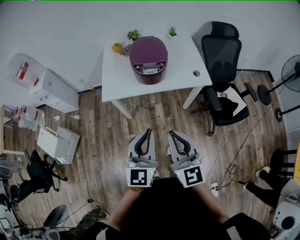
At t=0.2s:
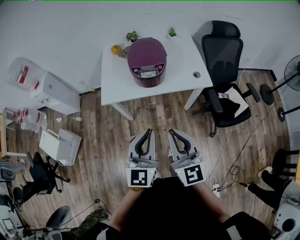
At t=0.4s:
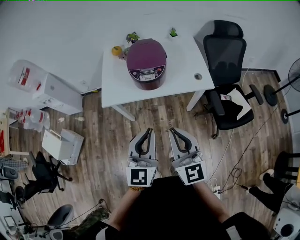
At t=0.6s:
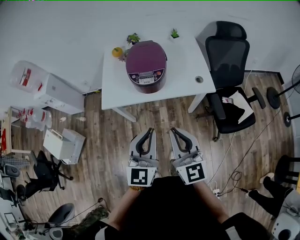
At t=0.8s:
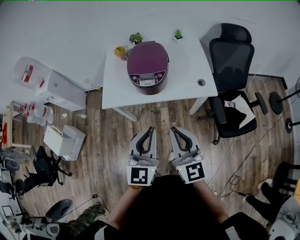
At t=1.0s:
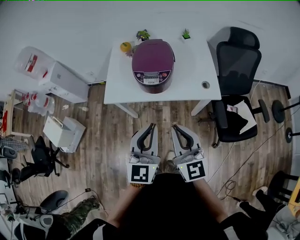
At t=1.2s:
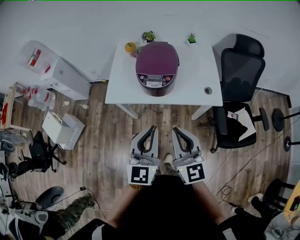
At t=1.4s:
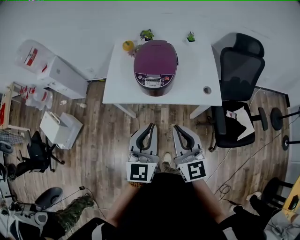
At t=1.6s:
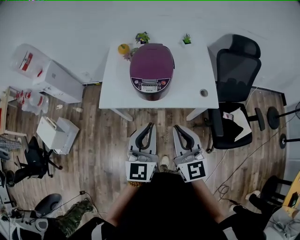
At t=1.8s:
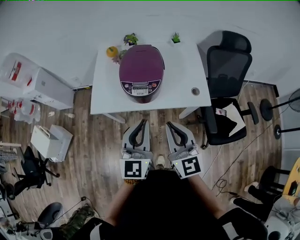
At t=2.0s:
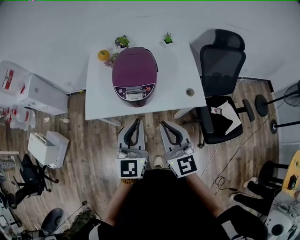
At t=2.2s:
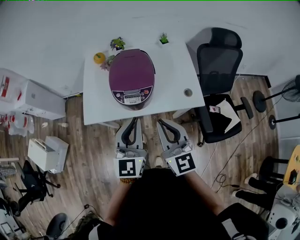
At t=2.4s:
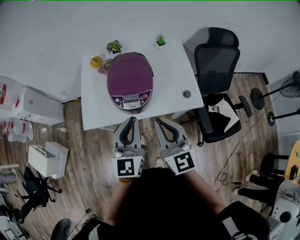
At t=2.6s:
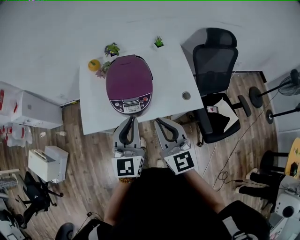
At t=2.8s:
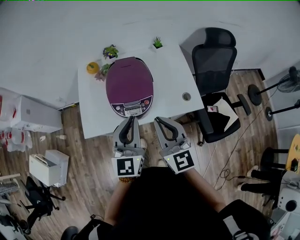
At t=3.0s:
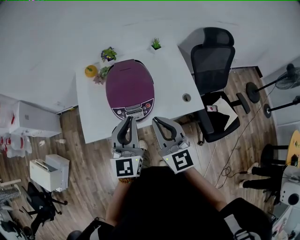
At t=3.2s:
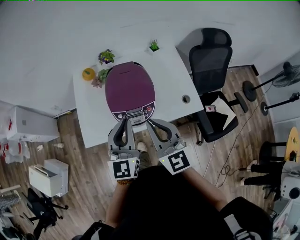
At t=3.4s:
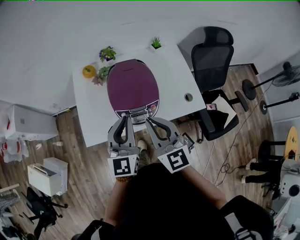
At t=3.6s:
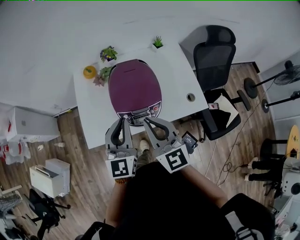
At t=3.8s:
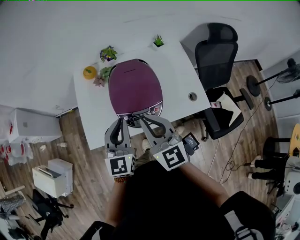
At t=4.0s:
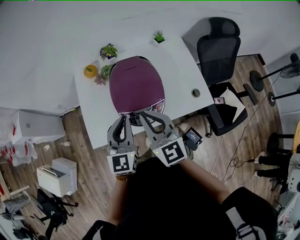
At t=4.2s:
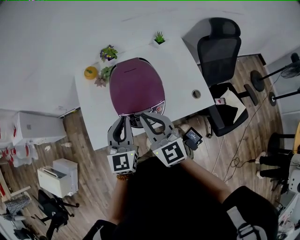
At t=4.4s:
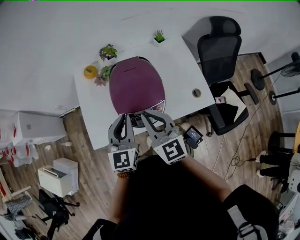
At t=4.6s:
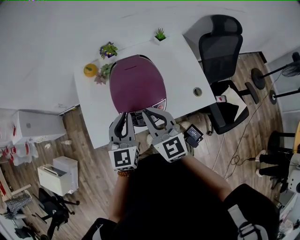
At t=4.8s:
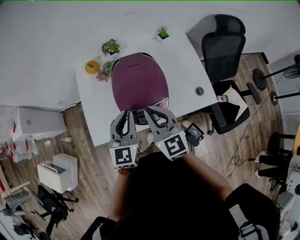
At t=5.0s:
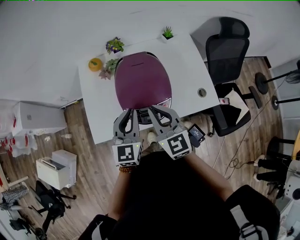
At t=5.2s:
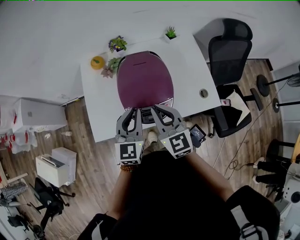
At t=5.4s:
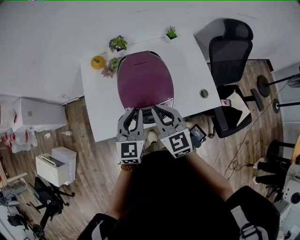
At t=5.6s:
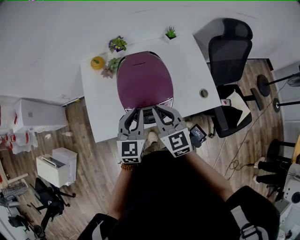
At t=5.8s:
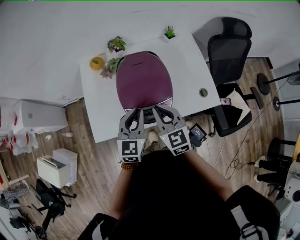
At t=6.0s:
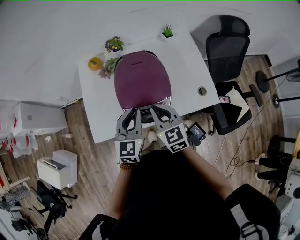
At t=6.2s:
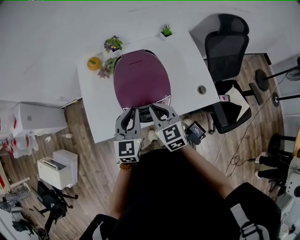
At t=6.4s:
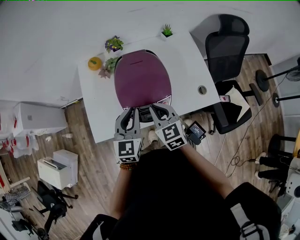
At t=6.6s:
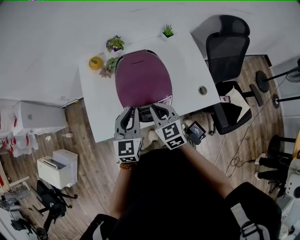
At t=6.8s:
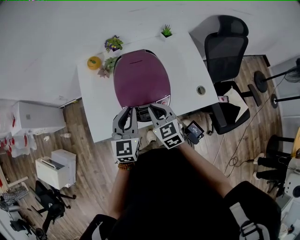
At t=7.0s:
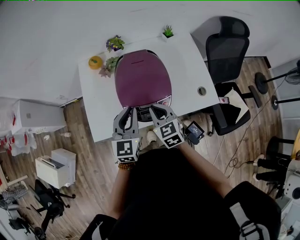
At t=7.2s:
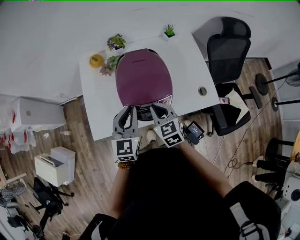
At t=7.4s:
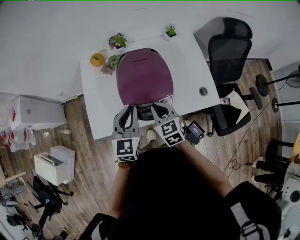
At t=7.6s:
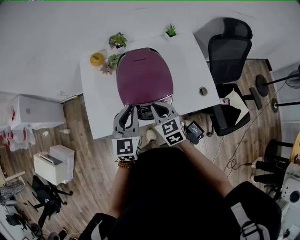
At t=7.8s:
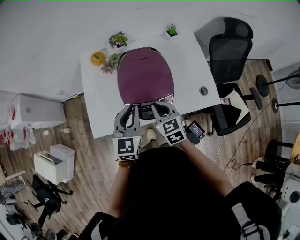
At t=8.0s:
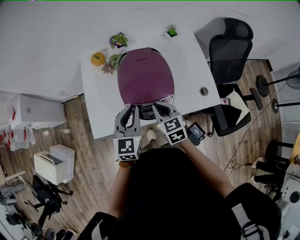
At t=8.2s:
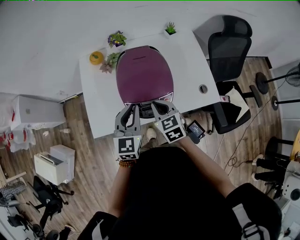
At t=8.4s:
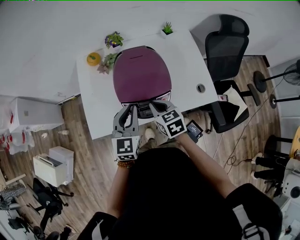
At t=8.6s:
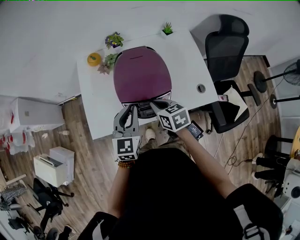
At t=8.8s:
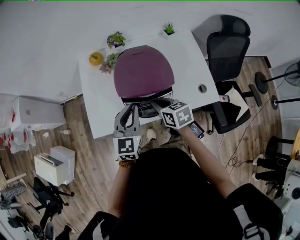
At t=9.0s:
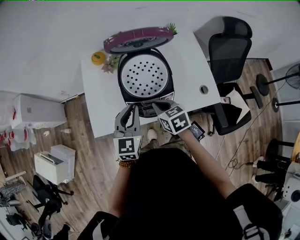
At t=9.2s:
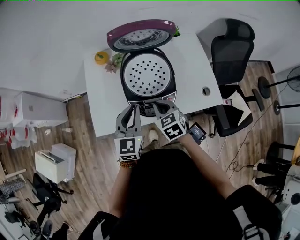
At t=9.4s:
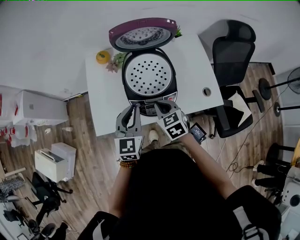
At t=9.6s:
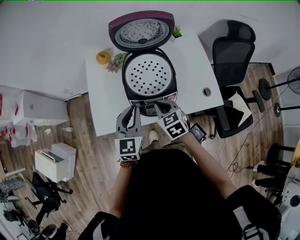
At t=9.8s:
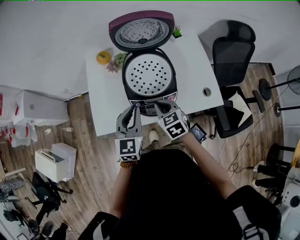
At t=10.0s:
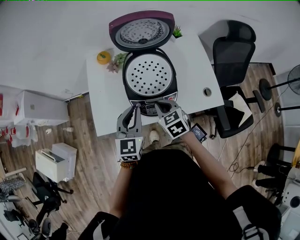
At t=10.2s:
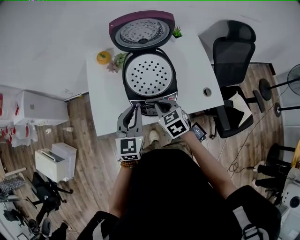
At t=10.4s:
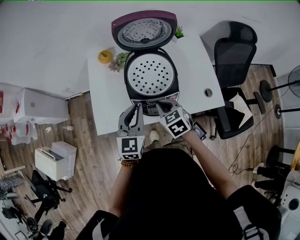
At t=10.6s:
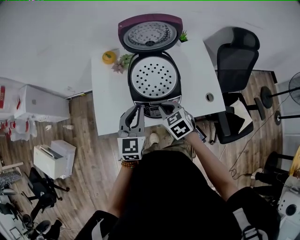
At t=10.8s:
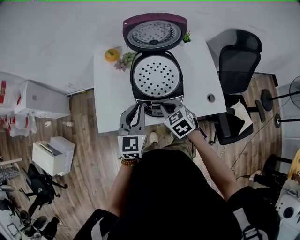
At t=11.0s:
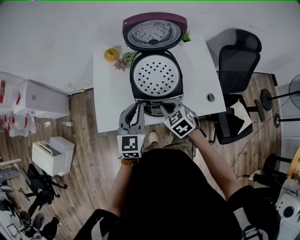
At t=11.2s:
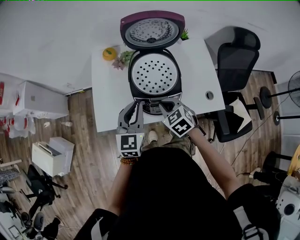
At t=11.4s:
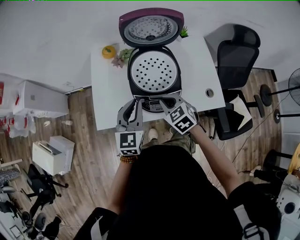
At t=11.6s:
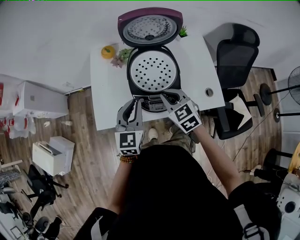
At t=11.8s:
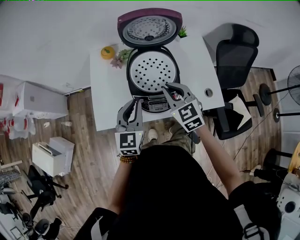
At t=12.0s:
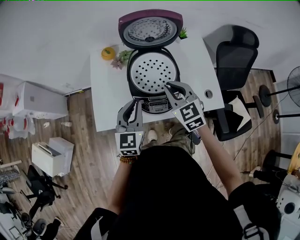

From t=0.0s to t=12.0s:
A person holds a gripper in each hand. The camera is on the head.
From t=0.0s to t=1.6s: Both grippers move forward and to the right, roughly 20 cm.
From t=1.6s to t=3.0s: The two grippers go approximately 20 cm forward.
From t=3.0s to t=4.4s: The grippers both shift forward, downward and to the left by some 15 cm.
From t=4.4s to t=6.0s: The left gripper changes place by about 5 cm. Meanwhile the right gripper goes some 10 cm downward.
From t=6.0s to t=7.6s: There are only small adjustments of the grippers.
From t=9.0s to t=10.4s: The grippers stay close to where they were, moving slightly.
From t=10.4s to t=12.0s: The right gripper heads upward, covering approximately 10 cm, and swivels approximately 20 degrees.

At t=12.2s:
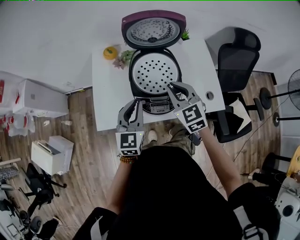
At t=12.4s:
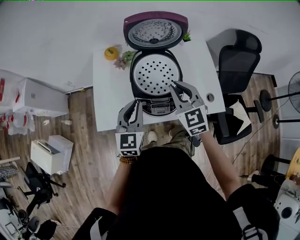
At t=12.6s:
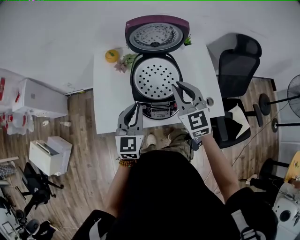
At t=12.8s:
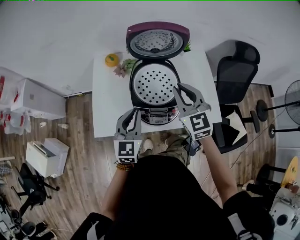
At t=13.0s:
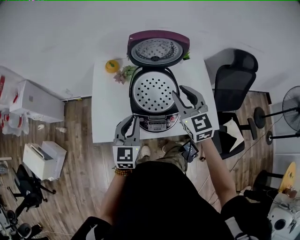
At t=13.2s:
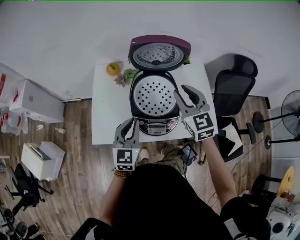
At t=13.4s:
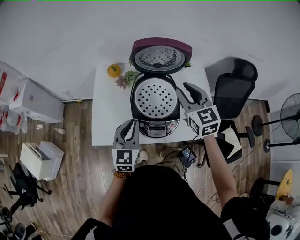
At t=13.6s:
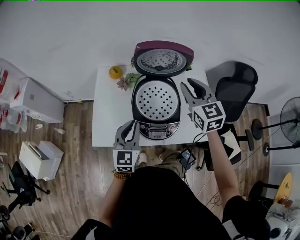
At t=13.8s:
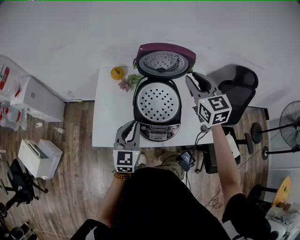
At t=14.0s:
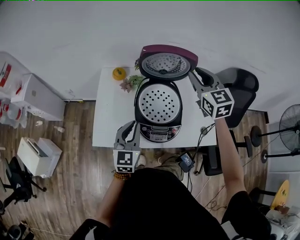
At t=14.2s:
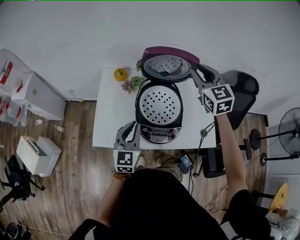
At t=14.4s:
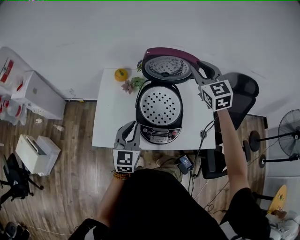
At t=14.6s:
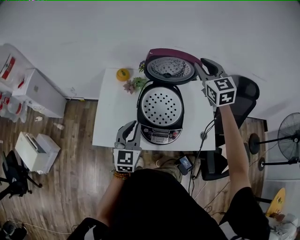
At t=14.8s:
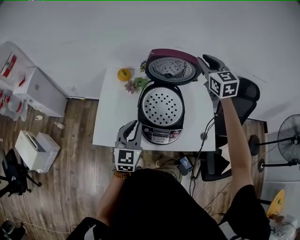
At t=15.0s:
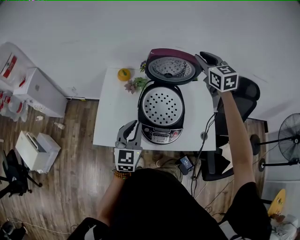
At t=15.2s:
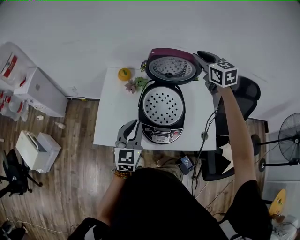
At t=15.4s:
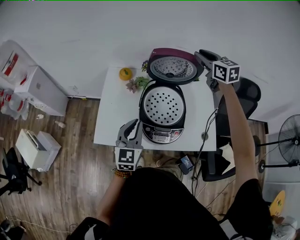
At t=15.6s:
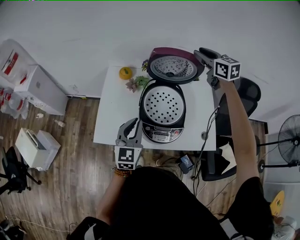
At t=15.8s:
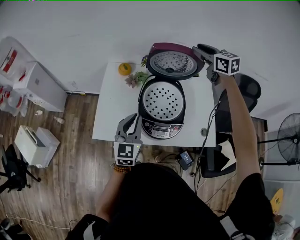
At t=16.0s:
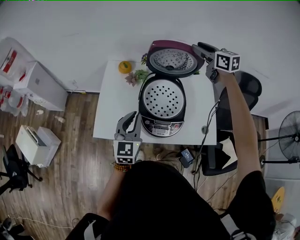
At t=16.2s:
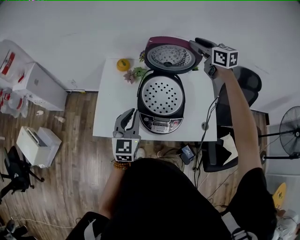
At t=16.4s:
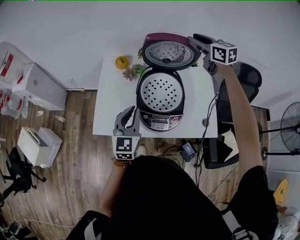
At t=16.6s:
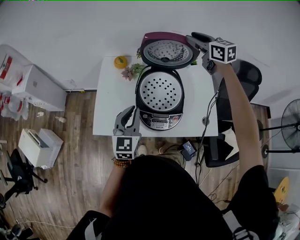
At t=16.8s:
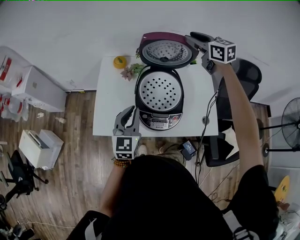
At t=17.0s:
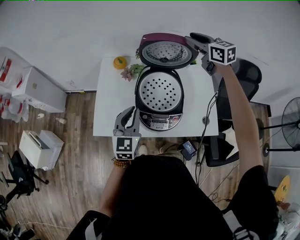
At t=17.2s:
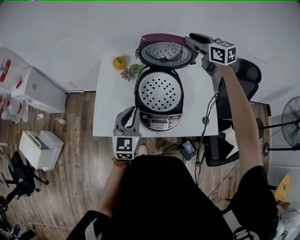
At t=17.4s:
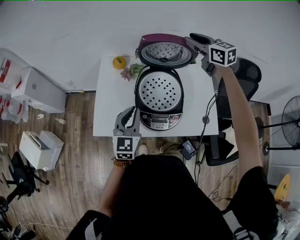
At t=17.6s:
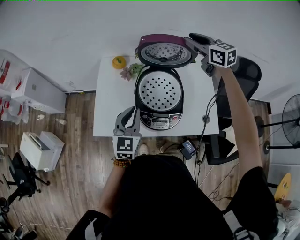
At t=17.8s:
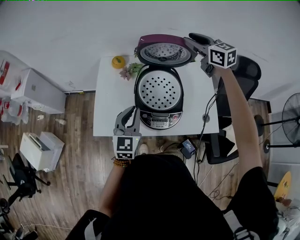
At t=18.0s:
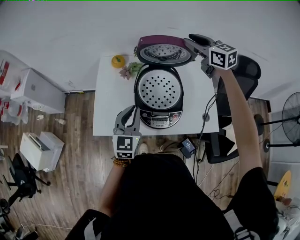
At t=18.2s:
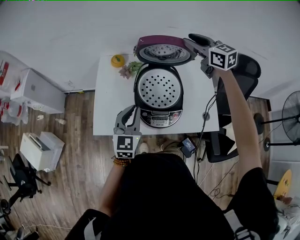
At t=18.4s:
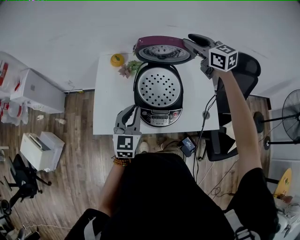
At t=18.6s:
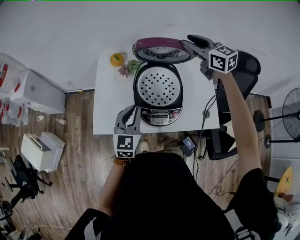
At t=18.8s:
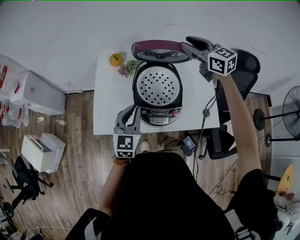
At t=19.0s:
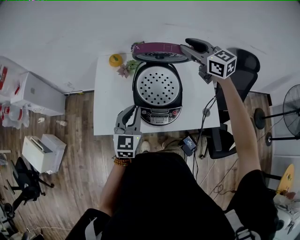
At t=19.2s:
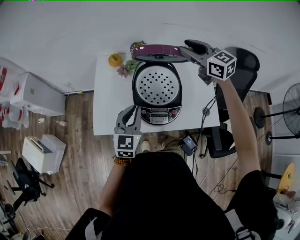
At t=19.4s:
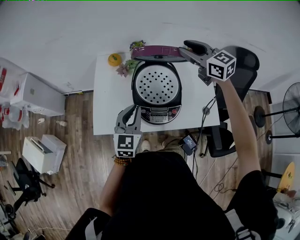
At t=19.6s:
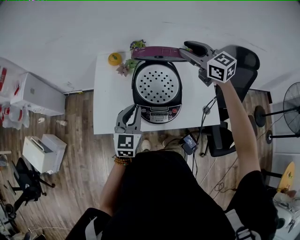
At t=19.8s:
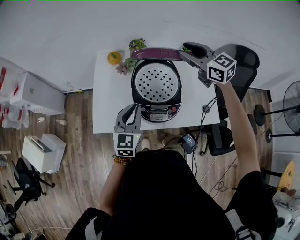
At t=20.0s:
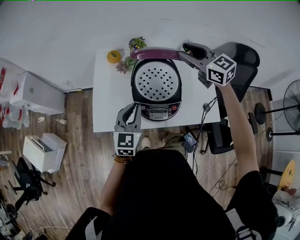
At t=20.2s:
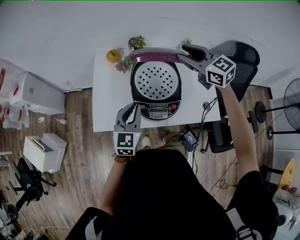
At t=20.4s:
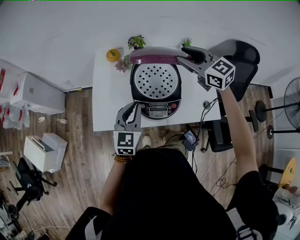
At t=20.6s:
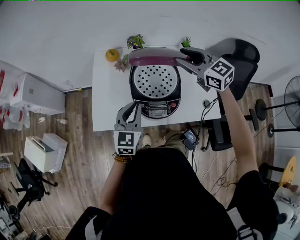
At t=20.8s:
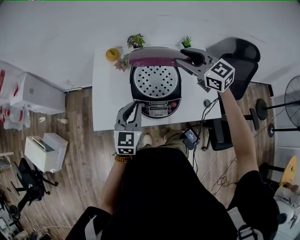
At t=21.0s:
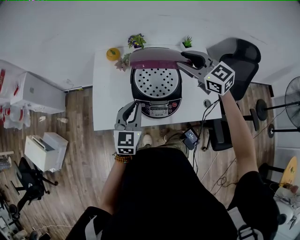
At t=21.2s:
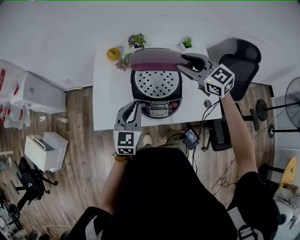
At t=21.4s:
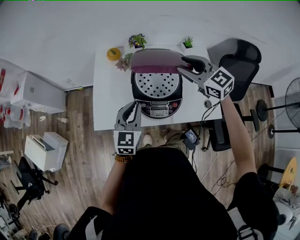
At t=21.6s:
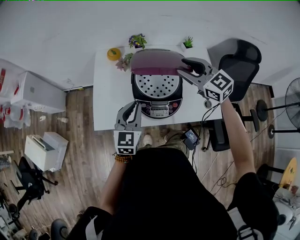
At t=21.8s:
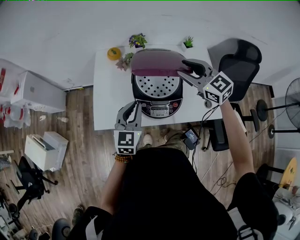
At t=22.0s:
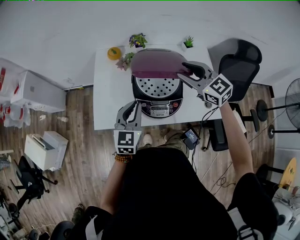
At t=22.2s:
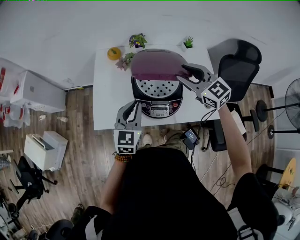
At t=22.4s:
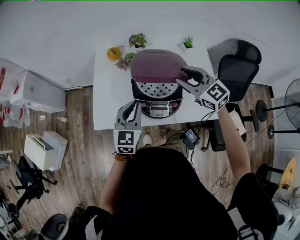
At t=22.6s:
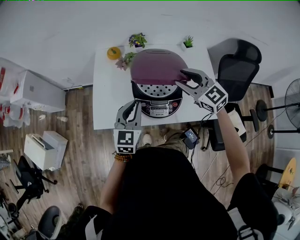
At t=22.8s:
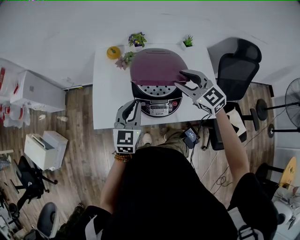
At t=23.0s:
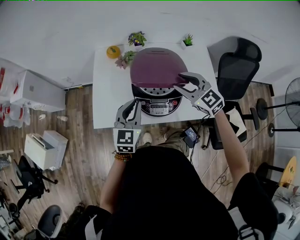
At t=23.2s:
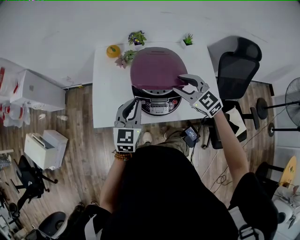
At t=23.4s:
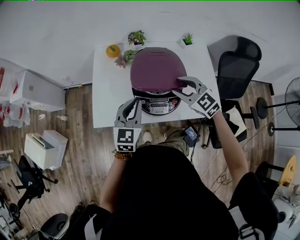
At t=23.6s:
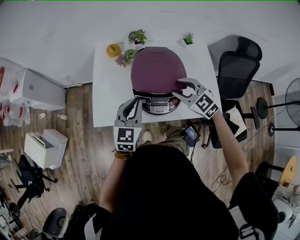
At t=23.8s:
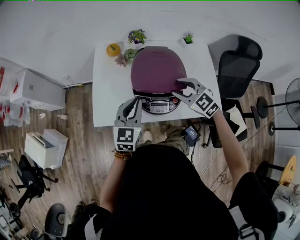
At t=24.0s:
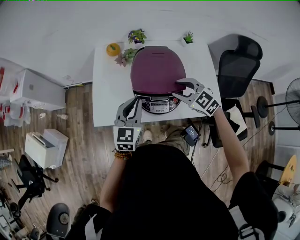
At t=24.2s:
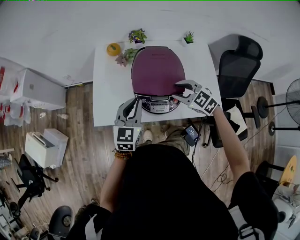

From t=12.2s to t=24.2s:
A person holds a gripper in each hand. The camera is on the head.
From t=12.2s to t=13.8s: The right gripper heads upward and forward, covering some 20 cm.
From t=13.8s to t=15.2s: The right gripper goes some 15 cm forward.
From t=15.2s to t=18.2s: There are only small adjustments of the grippers.
From t=18.2s to t=19.8s: The right gripper goes about 5 cm backward.
From t=19.8s to t=21.2s: The right gripper heads backward, covering about 5 cm.
From t=21.2s to t=22.6s: The right gripper shifts by approximately 5 cm.
From t=22.6s to t=24.2s: The right gripper is displaced downward by some 10 cm, and changes its angle by roughly 20 degrees.
